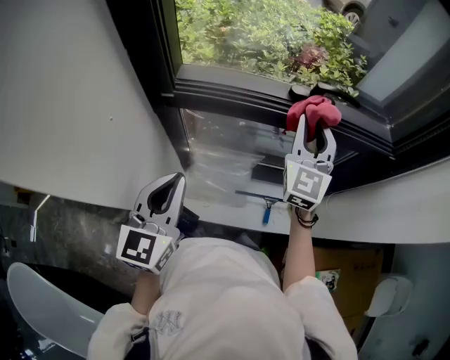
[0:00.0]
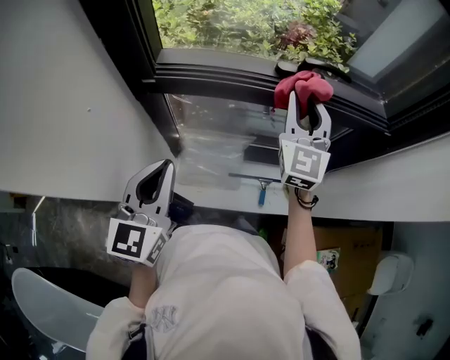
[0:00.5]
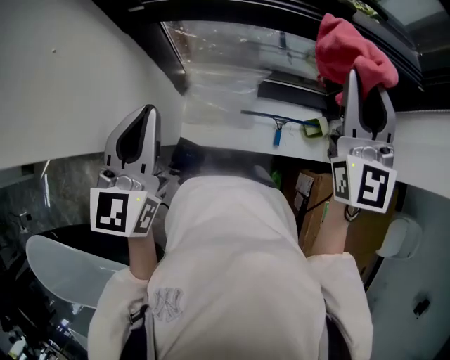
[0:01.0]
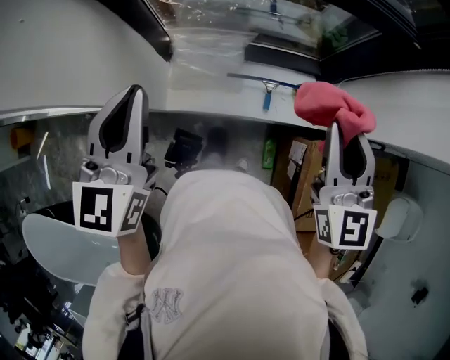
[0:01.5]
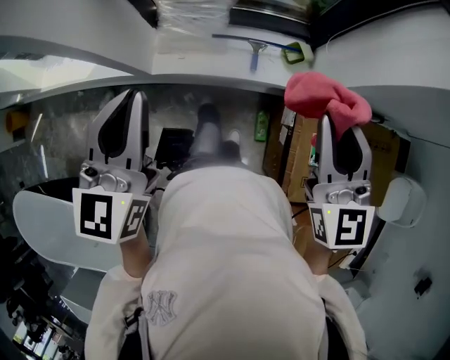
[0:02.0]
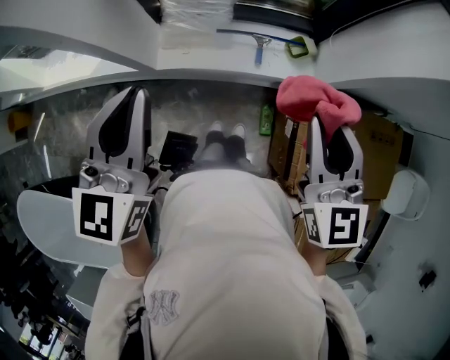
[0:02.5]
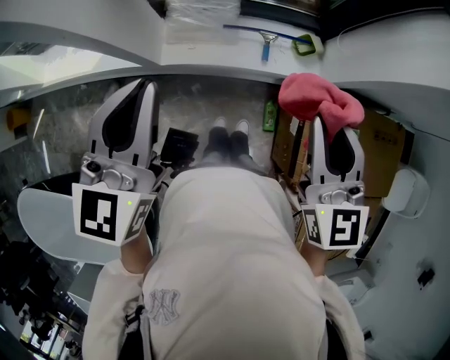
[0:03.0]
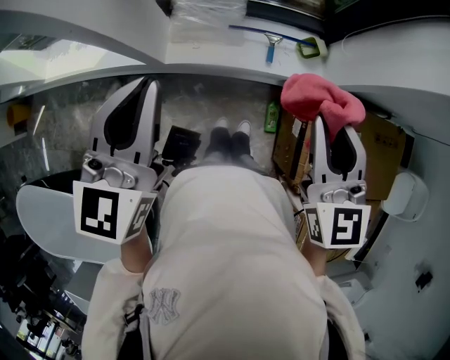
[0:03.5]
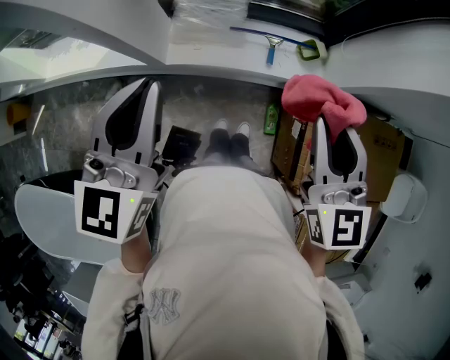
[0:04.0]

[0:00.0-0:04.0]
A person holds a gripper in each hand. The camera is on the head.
0:00.0 to 0:02.0: The right gripper travels backward and to the right by approximately 40 cm, and rotates roughly 30 degrees; the left gripper is displaced backward and to the right by some 25 cm.
0:02.0 to 0:04.0: The right gripper shifts about 5 cm to the left.

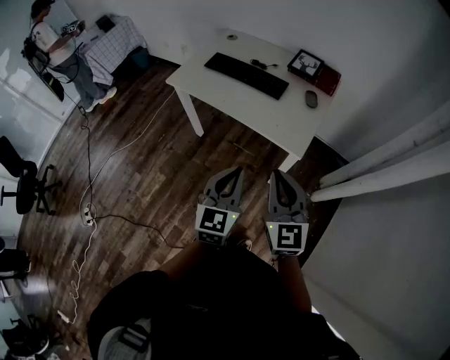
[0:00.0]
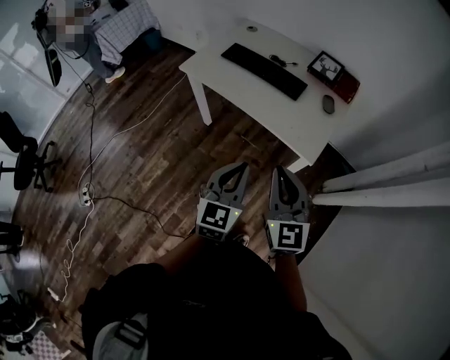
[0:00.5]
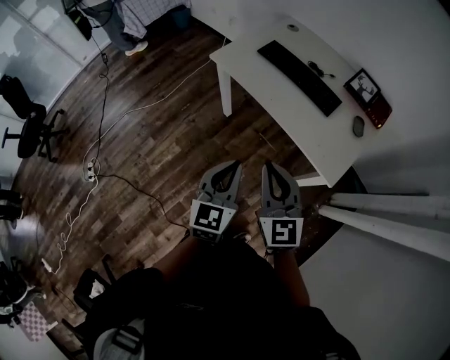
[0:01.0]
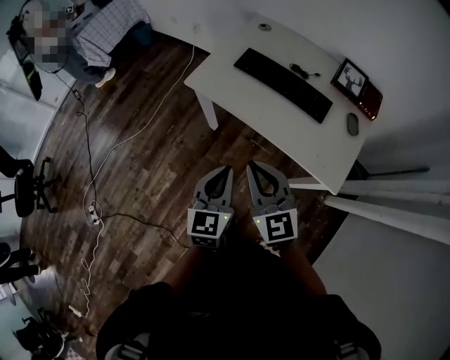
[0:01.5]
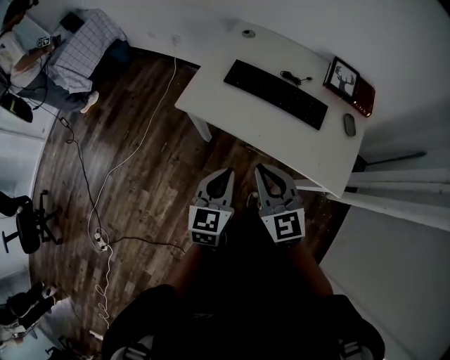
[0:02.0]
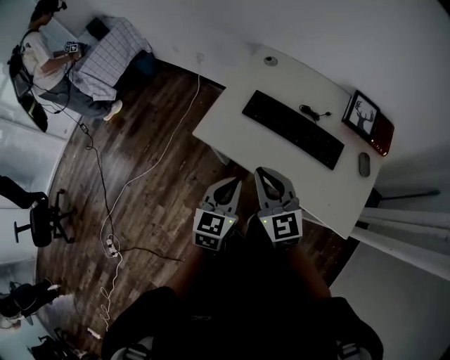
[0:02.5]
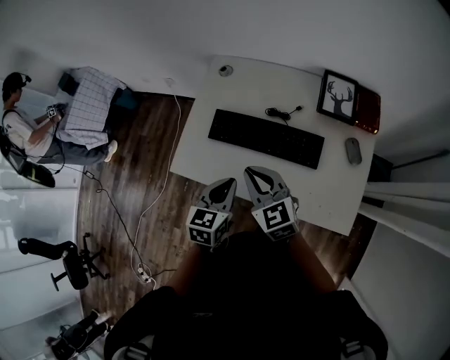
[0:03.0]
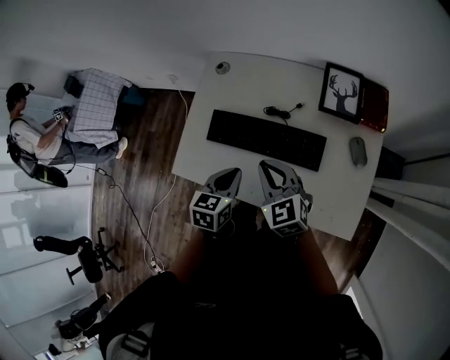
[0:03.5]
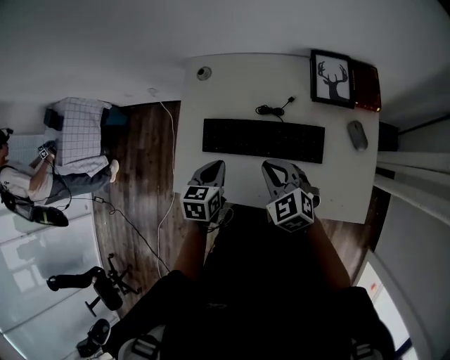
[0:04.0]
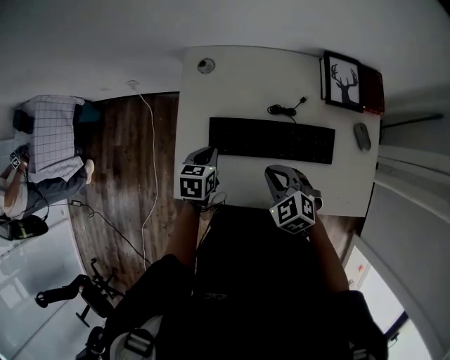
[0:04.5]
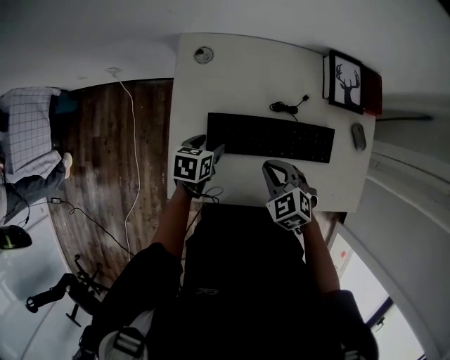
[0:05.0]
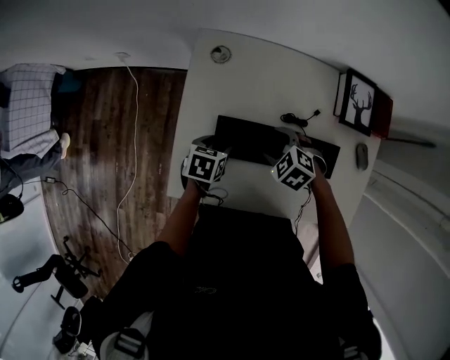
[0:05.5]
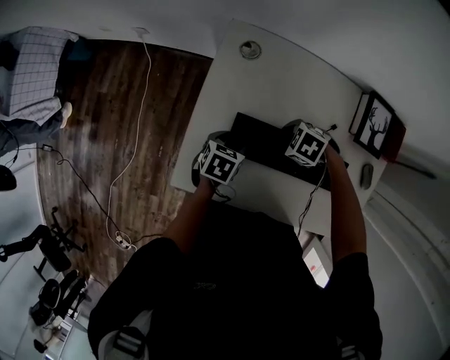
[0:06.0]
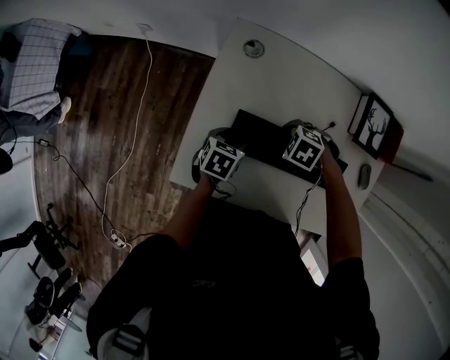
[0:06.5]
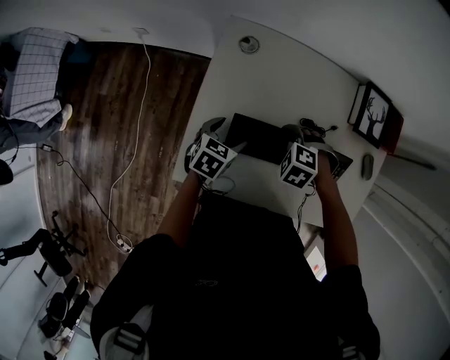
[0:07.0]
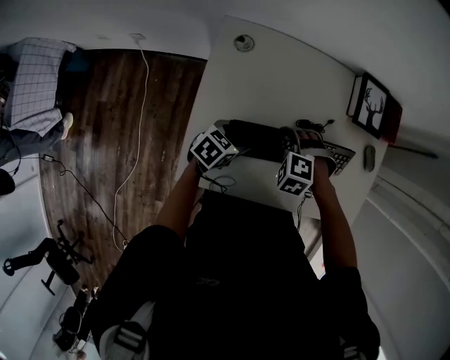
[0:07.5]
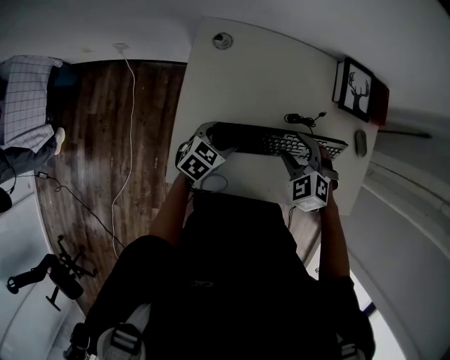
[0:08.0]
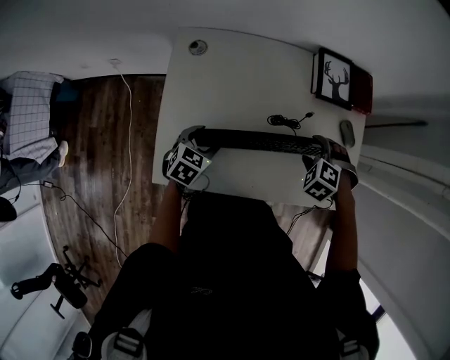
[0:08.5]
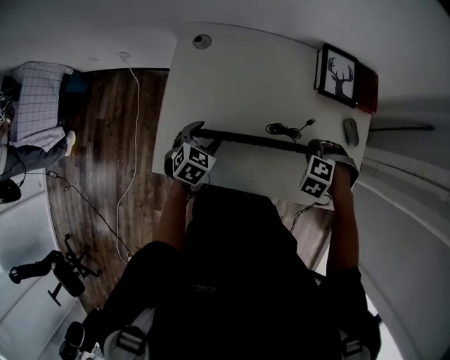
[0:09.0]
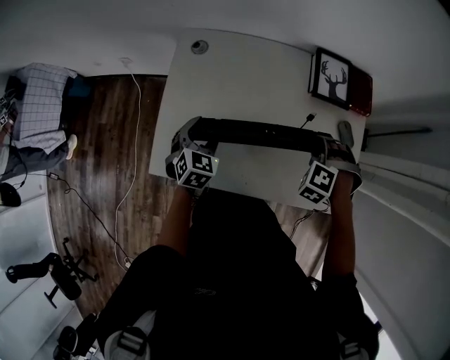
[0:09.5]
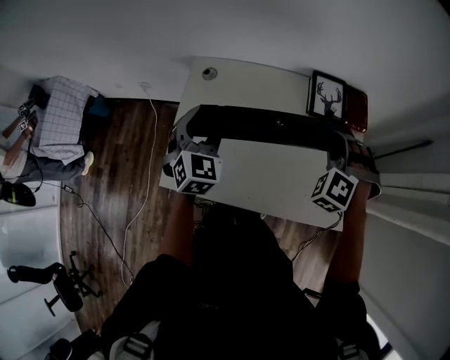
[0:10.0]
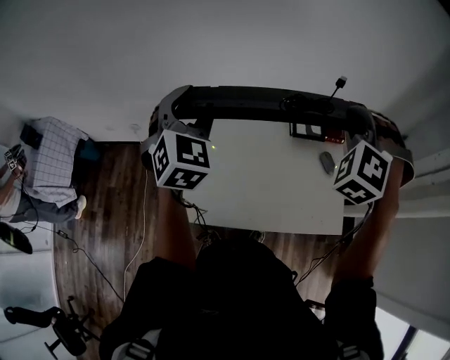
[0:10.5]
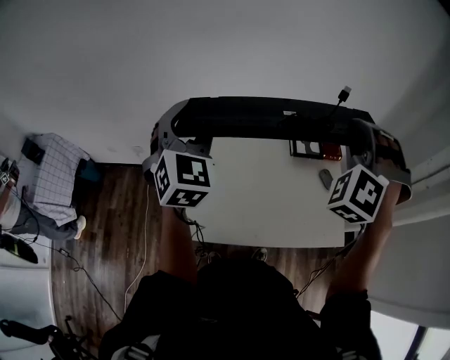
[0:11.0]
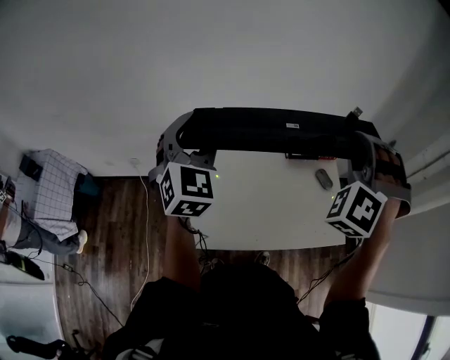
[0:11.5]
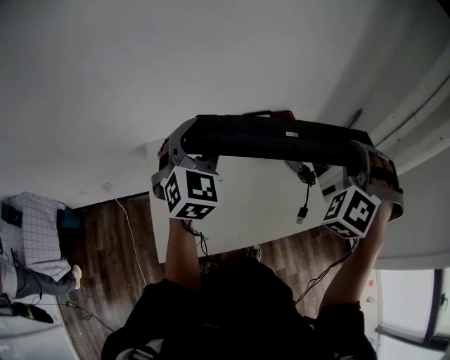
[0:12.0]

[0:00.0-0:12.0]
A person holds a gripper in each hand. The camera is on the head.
0:00.0 to 0:02.0: The grippers both shift forward and to the left by approximately 35 cm.
0:02.0 to 0:04.0: The right gripper is displaced forward, to the right and downward by some 30 cm, while the left gripper goes roughly 30 cm forward, and changes its angle by about 30 degrees.
0:04.0 to 0:06.0: The two grippers go approximately 15 cm downward. The left gripper rotates roughly 20 degrees, and opens its fingers; the right gripper tips its fingers downward by roughly 30 degrees, and opens up.
0:06.0 to 0:08.0: The left gripper rotates some 30 degrees. Meanwhile the right gripper is displaced upward by approximately 10 cm, and changes its angle by approximately 50 degrees.
0:08.0 to 0:10.0: The right gripper moves approximately 25 cm, swivels some 40 degrees, and closes its fingers. Meanwhile the left gripper moves upward, about 25 cm, and changes its angle by about 50 degrees.
0:10.0 to 0:12.0: Both grippers travel together upward, some 20 cm. The left gripper swivels roughly 30 degrees. The right gripper rotates approximately 30 degrees.

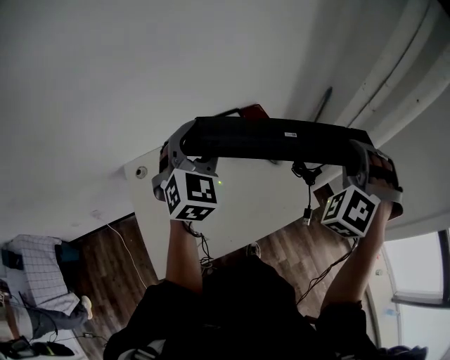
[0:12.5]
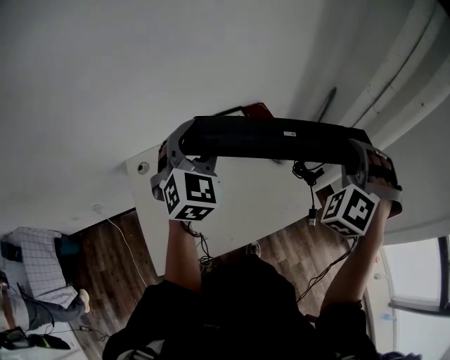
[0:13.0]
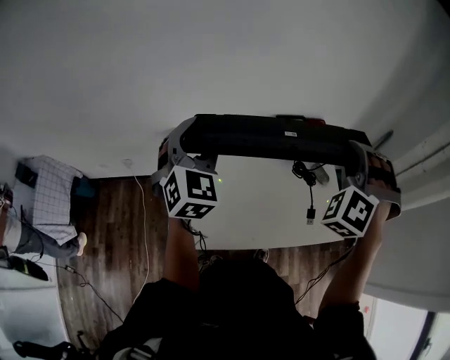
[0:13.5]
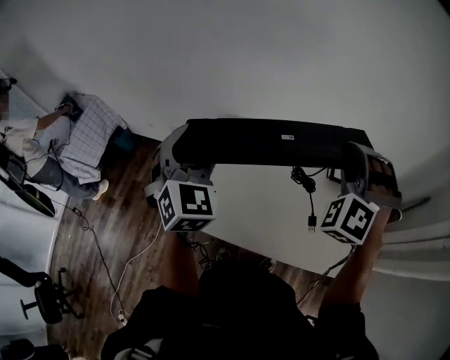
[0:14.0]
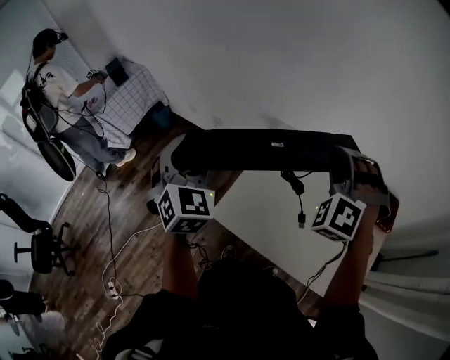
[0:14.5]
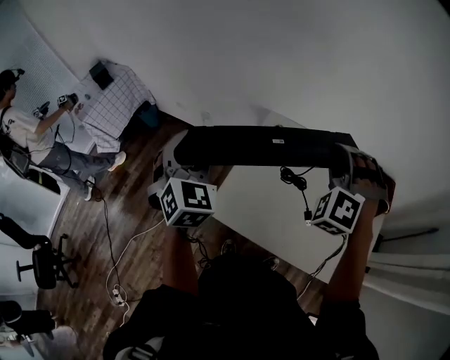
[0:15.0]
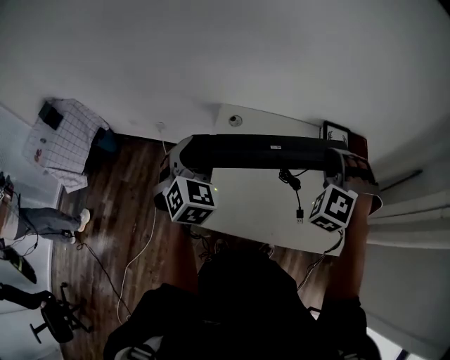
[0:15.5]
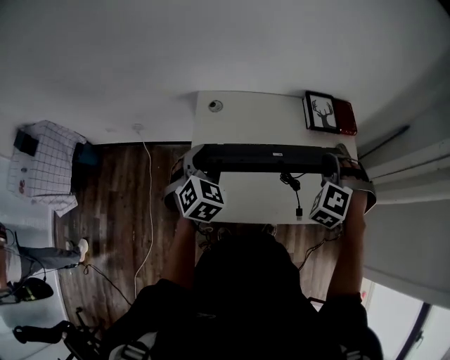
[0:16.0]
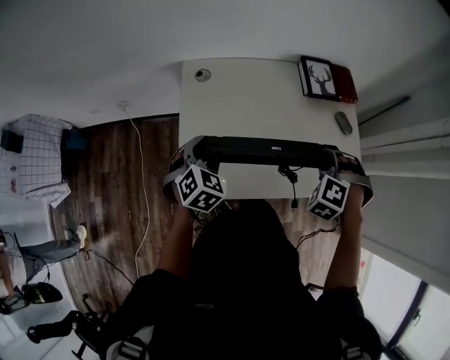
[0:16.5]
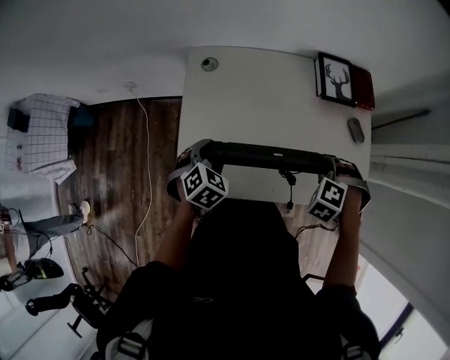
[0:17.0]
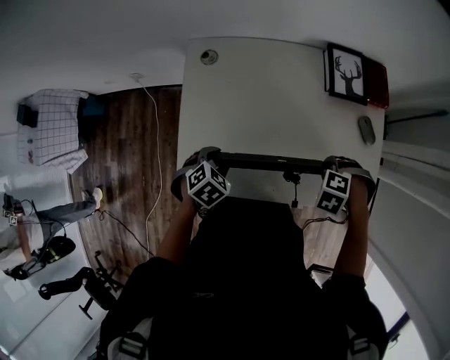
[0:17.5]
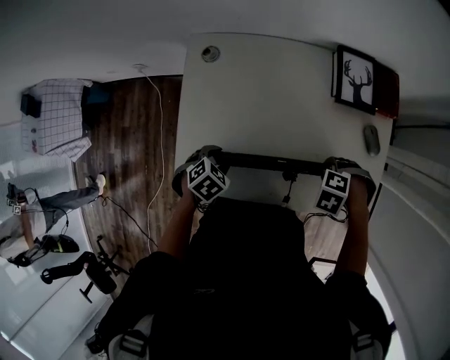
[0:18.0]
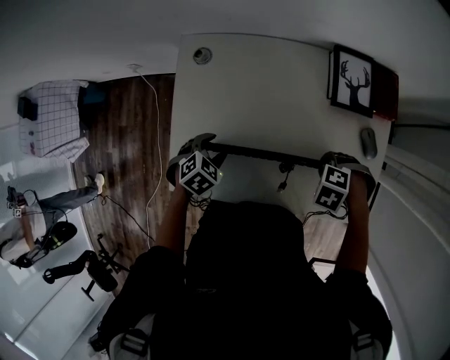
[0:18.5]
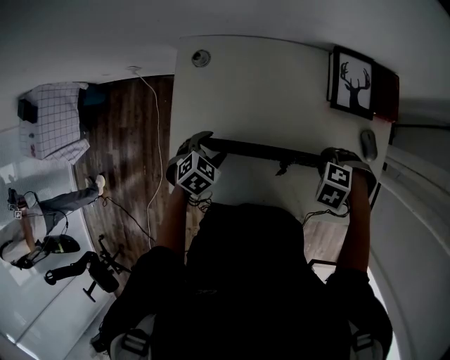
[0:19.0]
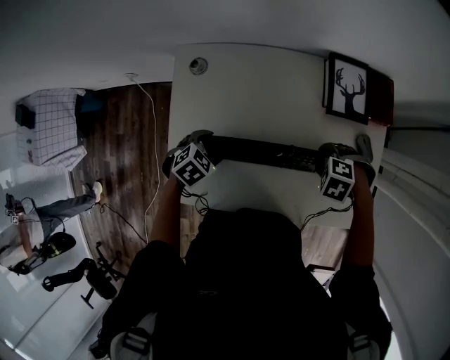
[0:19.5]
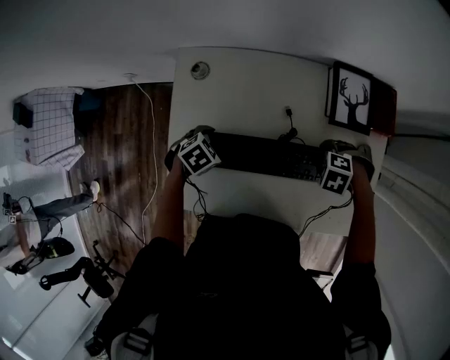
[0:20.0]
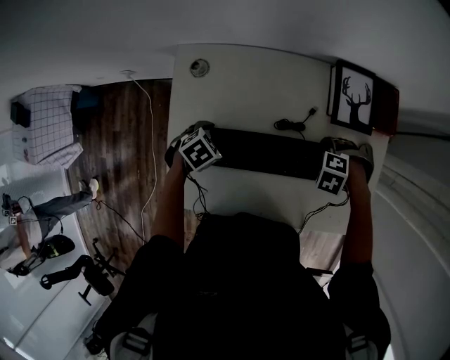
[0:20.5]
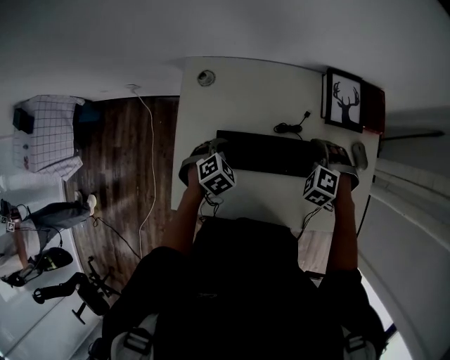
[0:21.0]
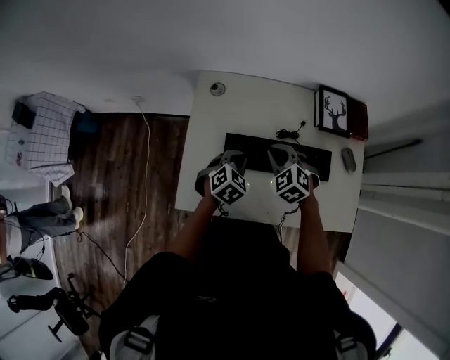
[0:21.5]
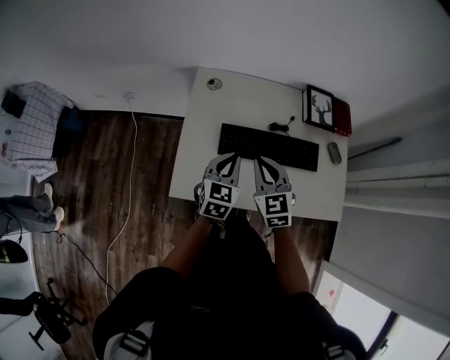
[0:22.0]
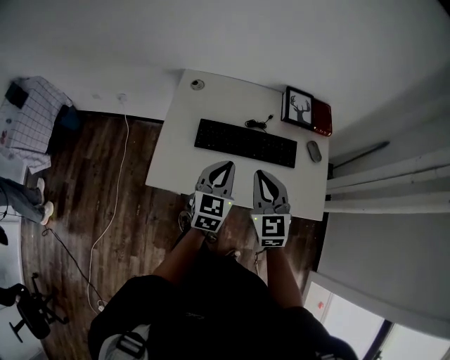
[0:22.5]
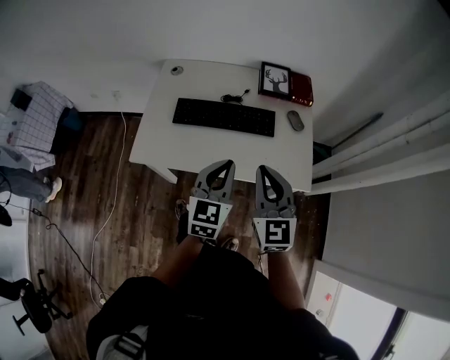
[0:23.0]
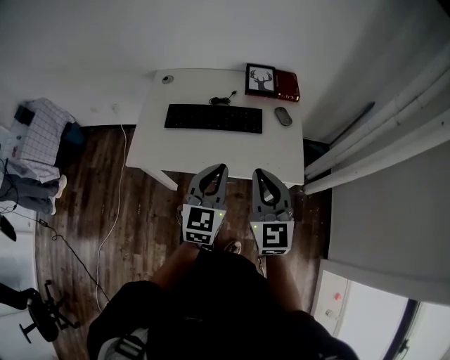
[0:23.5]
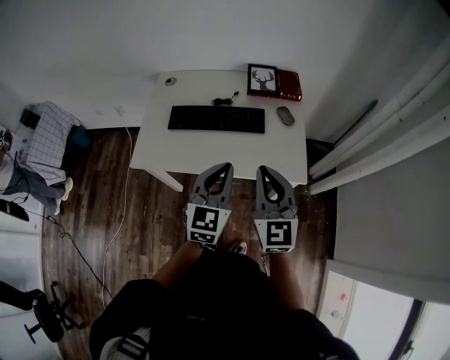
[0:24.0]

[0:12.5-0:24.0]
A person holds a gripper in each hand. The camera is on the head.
0:12.5 to 0:14.5: The right gripper shifts by approximately 40 cm, and changes its angle by approximately 70 degrees, while the left gripper ends up about 40 cm from where it was, and changes its angle by approximately 70 degrees.
0:14.5 to 0:16.5: Both grippers move downward, about 25 cm. The left gripper swivels roughly 50 degrees. The right gripper angles its fingers downward, by roughly 30 degrees.
0:16.5 to 0:18.5: Both grippers travel together downward, about 15 cm. The left gripper turns by roughly 30 degrees; the right gripper swivels approximately 40 degrees.
0:18.5 to 0:20.0: The right gripper ends up some 10 cm from where it was, and opens its fingers. Meanwhile the left gripper changes place by approximately 5 cm, and opens.
0:20.0 to 0:22.0: The right gripper ends up some 30 cm from where it was, points its fingers approximately 60 degrees further upward, and closes up. The left gripper is displaced upward by about 20 cm, angles its fingers upward, by approximately 50 degrees, and closes up.
0:22.0 to 0:24.0: Both grippers travel together to the right, backward and upward, roughly 35 cm. The right gripper rotates roughly 30 degrees.
